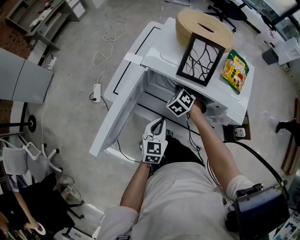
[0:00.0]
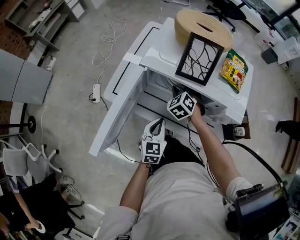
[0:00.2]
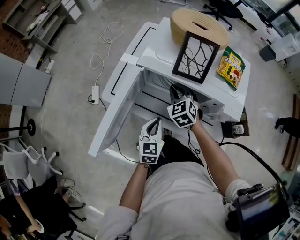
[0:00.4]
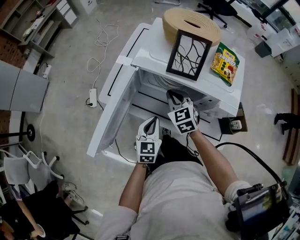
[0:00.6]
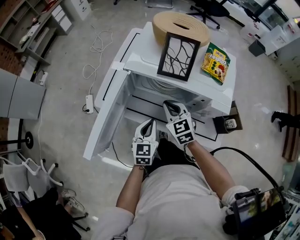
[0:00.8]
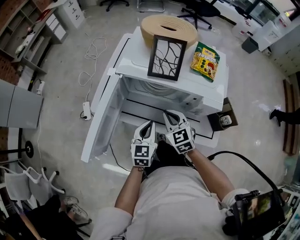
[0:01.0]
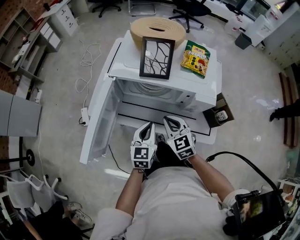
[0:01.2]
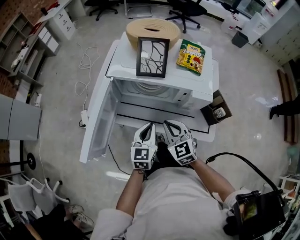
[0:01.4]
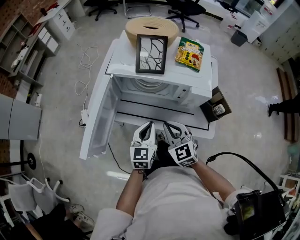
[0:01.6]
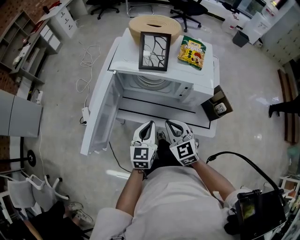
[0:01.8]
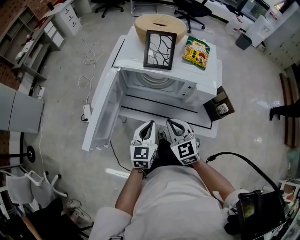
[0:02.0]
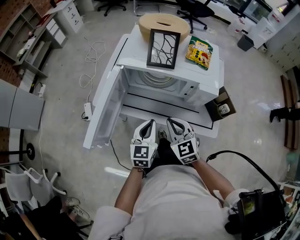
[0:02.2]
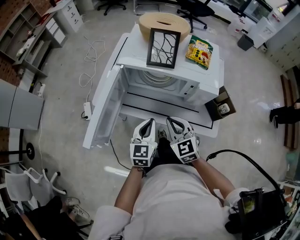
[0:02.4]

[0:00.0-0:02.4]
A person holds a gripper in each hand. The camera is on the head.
0:00.0 to 0:01.2: The left gripper changes place by some 5 cm.

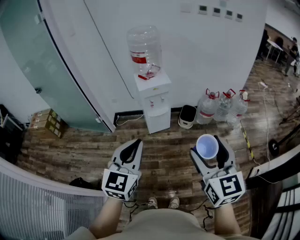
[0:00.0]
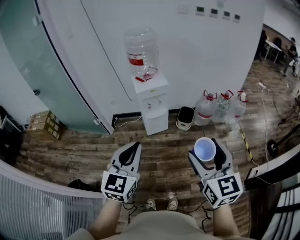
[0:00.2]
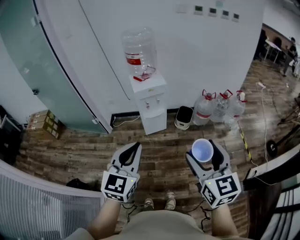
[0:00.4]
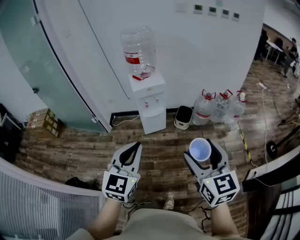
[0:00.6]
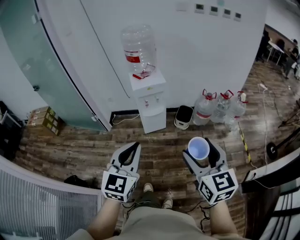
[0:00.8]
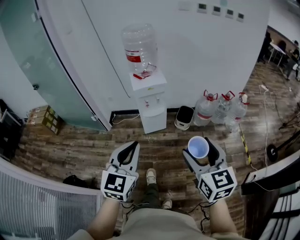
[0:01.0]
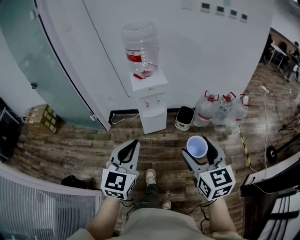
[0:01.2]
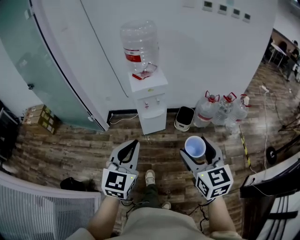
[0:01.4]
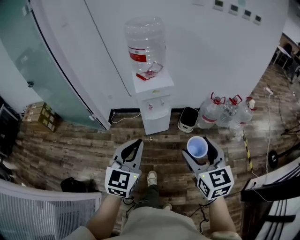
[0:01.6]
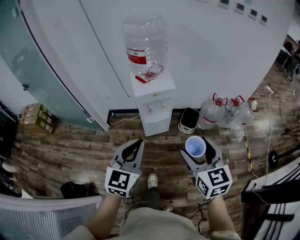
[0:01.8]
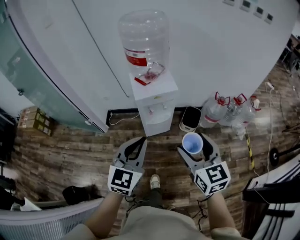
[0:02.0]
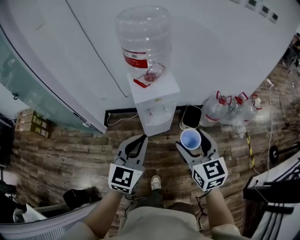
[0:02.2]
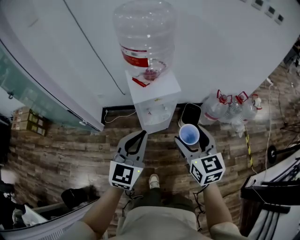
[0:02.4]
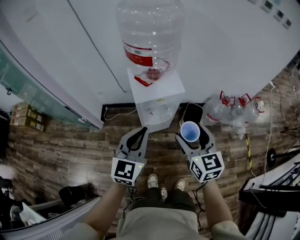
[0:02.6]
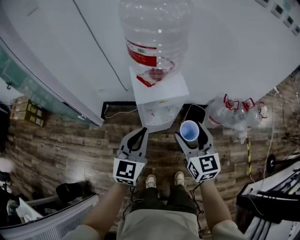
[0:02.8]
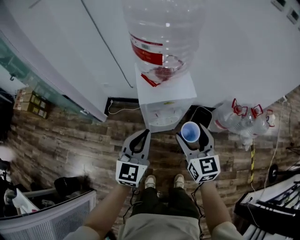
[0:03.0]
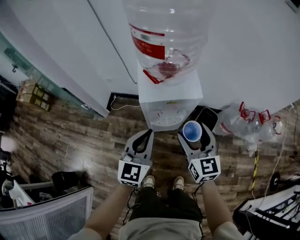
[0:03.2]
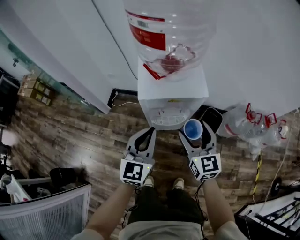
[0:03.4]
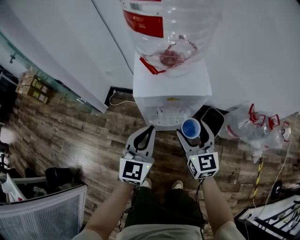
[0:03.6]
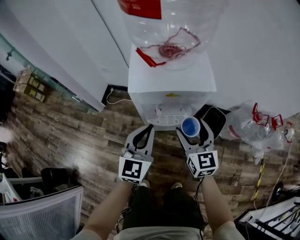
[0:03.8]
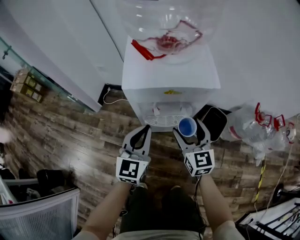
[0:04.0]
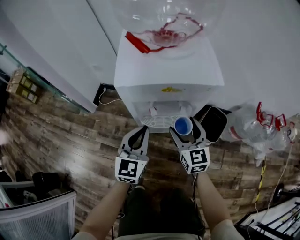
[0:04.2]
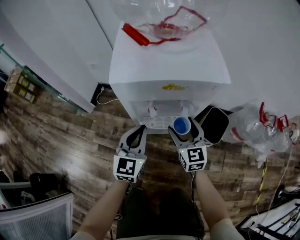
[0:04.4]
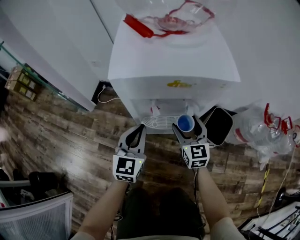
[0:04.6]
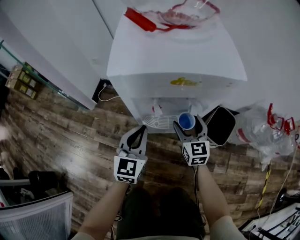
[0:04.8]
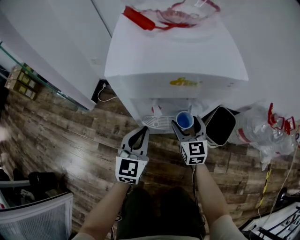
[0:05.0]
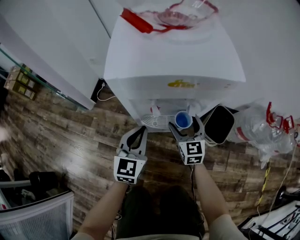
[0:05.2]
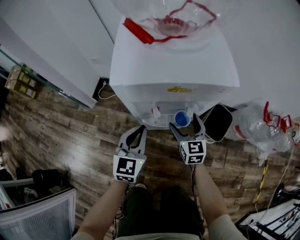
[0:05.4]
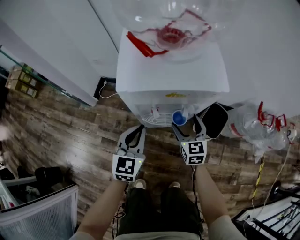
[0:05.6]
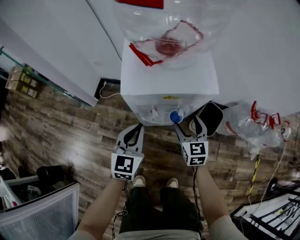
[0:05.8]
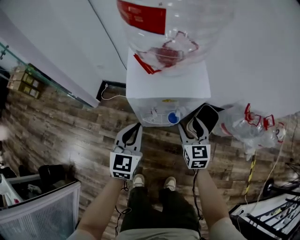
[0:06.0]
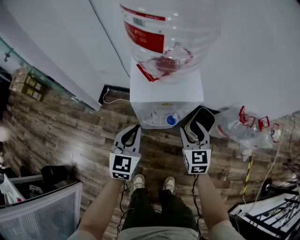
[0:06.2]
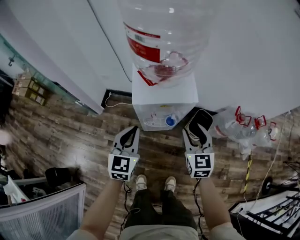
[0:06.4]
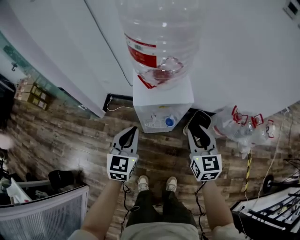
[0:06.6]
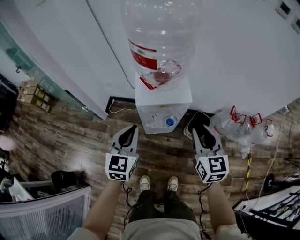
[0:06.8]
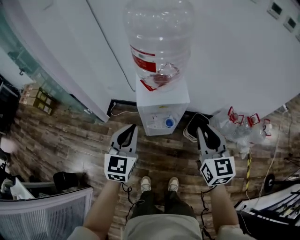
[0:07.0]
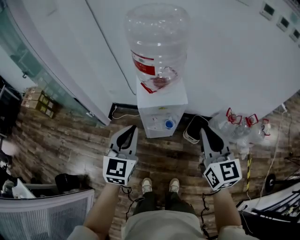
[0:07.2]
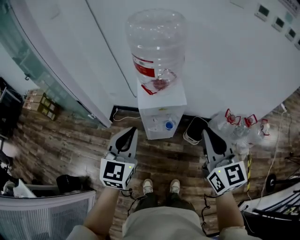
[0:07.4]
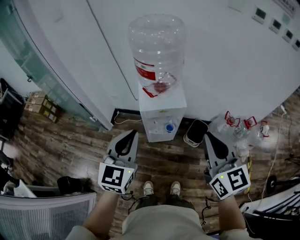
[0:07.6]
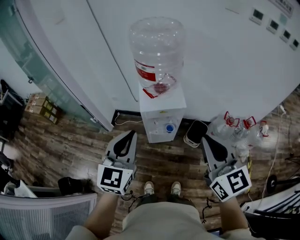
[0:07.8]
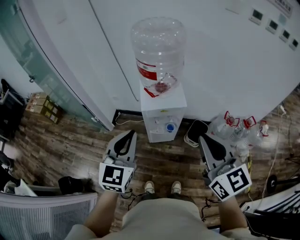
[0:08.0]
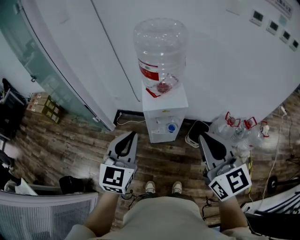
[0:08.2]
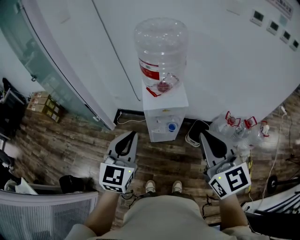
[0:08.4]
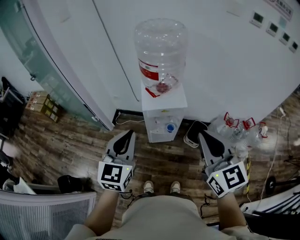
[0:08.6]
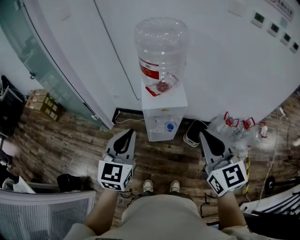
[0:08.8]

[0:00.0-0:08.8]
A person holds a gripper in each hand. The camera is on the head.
0:00.0 to 0:01.4: The two grippers go about 15 cm forward and downward.
0:01.4 to 0:03.0: Both grippers travel together forward and downward, approximately 40 cm.
0:03.0 to 0:04.4: The two grippers go approximately 35 cm downward.
0:04.4 to 0:05.8: The two grippers go roughly 5 cm upward.
0:05.8 to 0:07.4: The right gripper shifts about 60 cm upward and backward, and closes its fingers. Meanwhile the left gripper travels upward by some 40 cm.
0:07.4 to 0:08.8: The left gripper shifts by about 5 cm. The right gripper ends up roughly 5 cm from where it was.

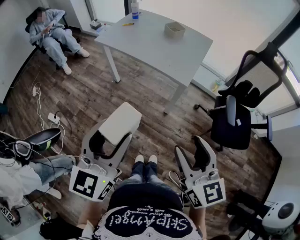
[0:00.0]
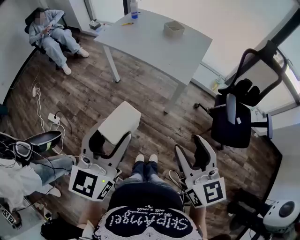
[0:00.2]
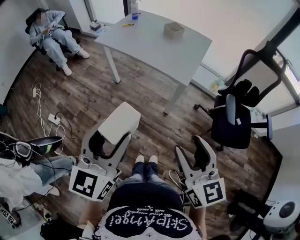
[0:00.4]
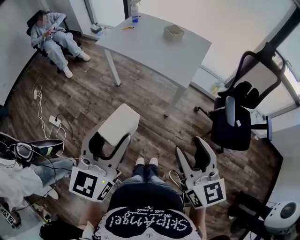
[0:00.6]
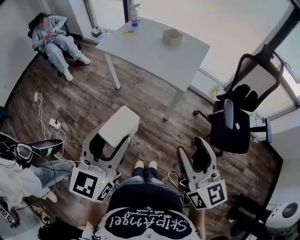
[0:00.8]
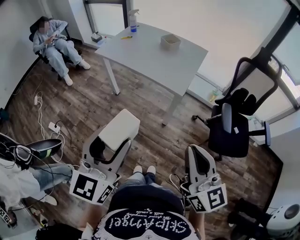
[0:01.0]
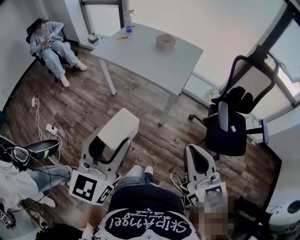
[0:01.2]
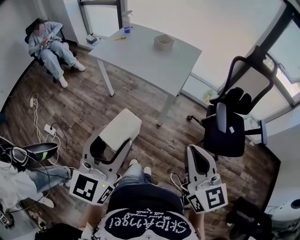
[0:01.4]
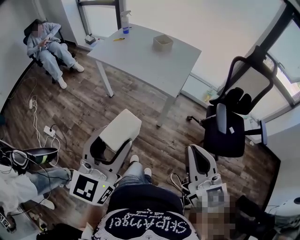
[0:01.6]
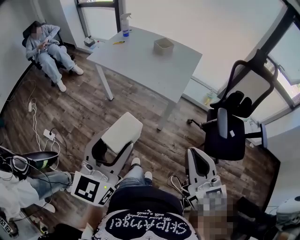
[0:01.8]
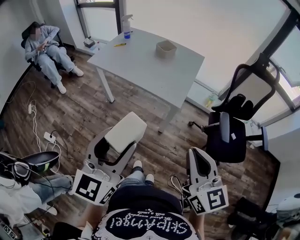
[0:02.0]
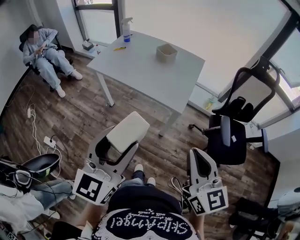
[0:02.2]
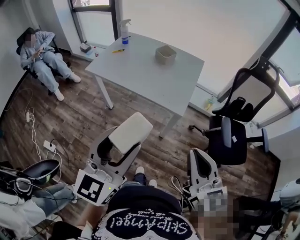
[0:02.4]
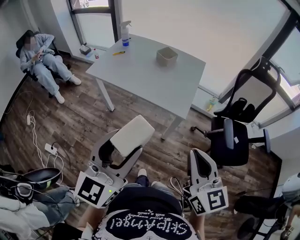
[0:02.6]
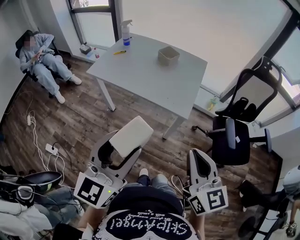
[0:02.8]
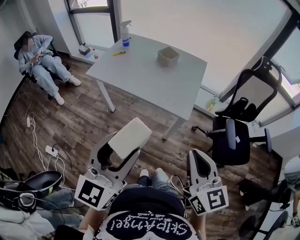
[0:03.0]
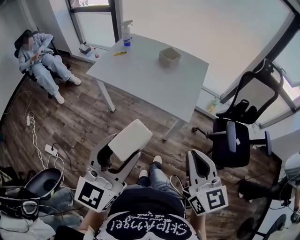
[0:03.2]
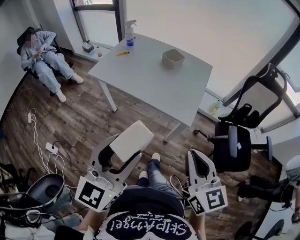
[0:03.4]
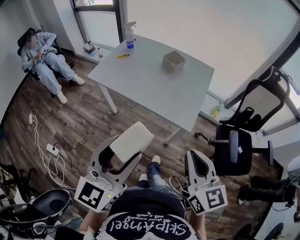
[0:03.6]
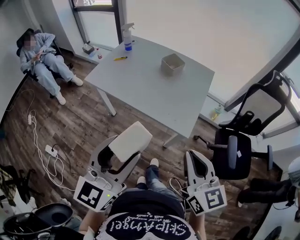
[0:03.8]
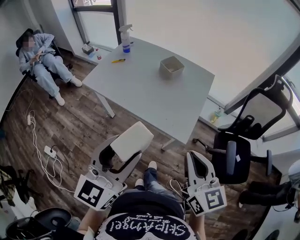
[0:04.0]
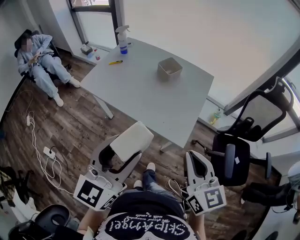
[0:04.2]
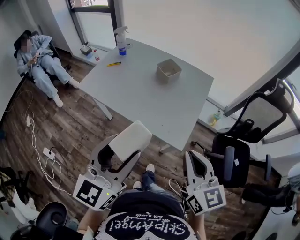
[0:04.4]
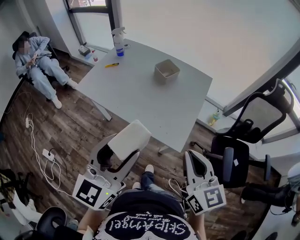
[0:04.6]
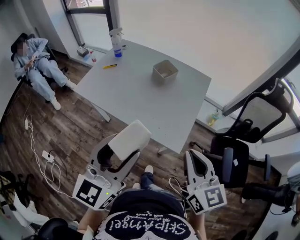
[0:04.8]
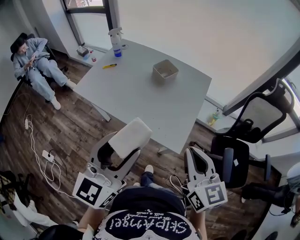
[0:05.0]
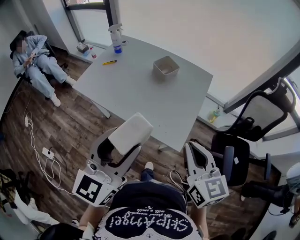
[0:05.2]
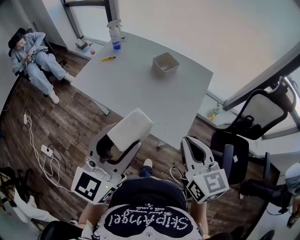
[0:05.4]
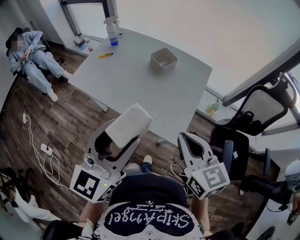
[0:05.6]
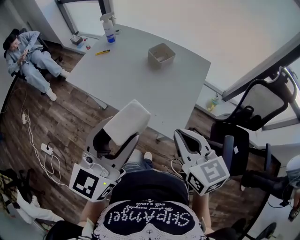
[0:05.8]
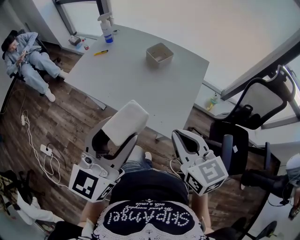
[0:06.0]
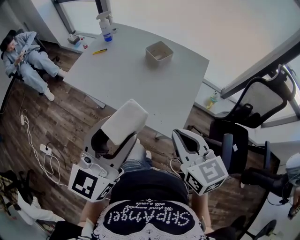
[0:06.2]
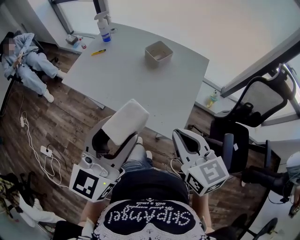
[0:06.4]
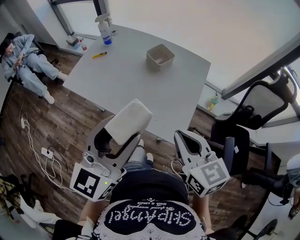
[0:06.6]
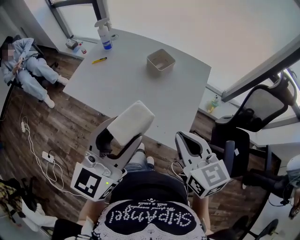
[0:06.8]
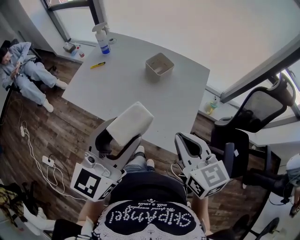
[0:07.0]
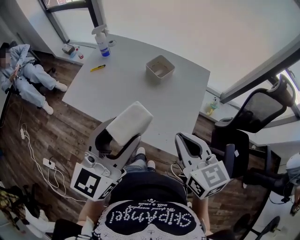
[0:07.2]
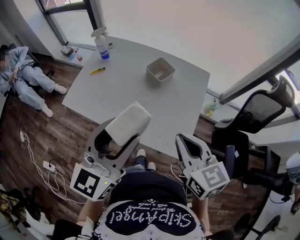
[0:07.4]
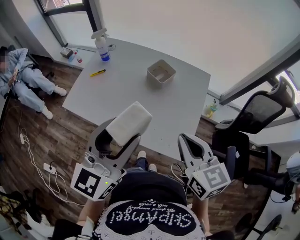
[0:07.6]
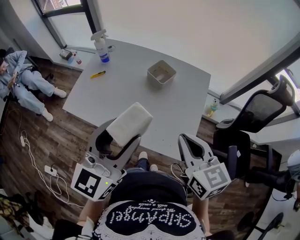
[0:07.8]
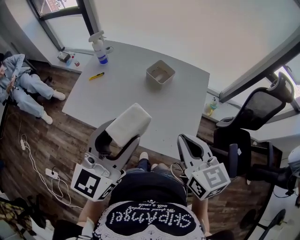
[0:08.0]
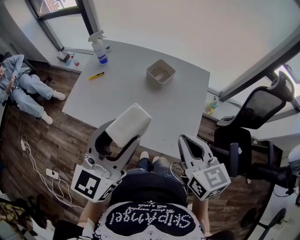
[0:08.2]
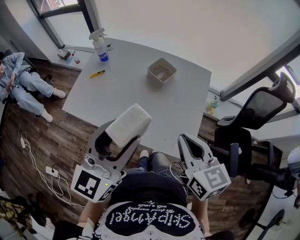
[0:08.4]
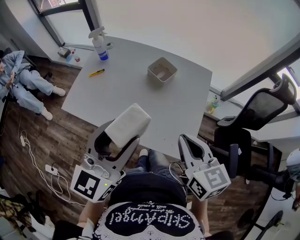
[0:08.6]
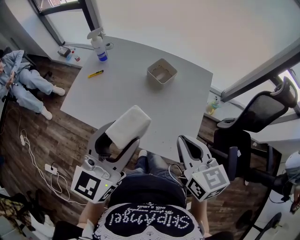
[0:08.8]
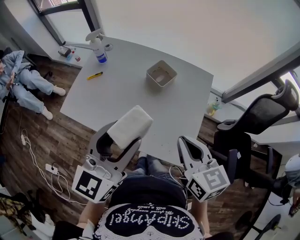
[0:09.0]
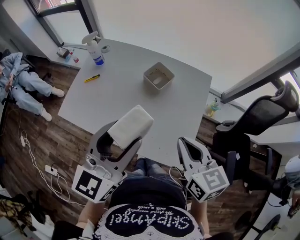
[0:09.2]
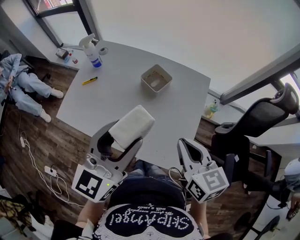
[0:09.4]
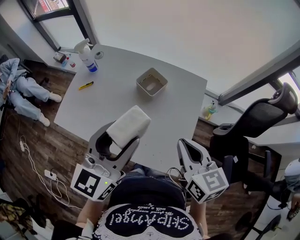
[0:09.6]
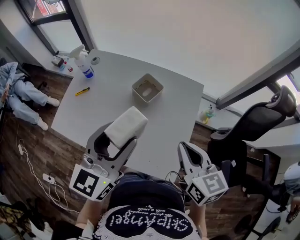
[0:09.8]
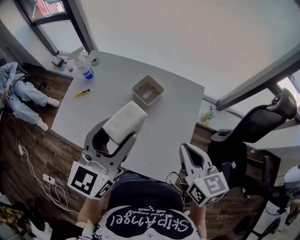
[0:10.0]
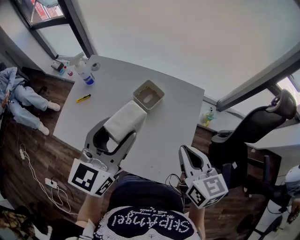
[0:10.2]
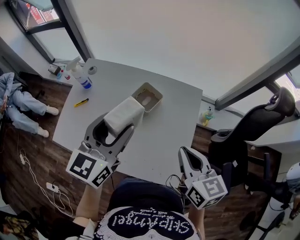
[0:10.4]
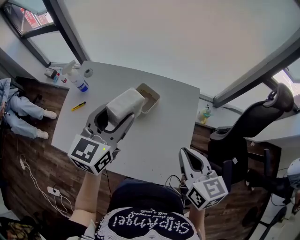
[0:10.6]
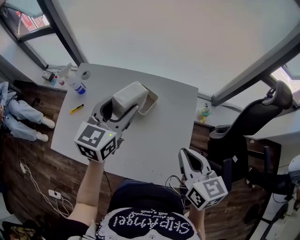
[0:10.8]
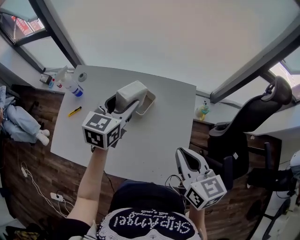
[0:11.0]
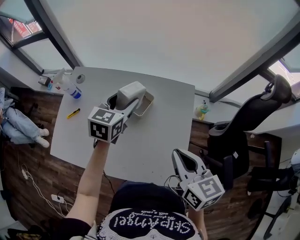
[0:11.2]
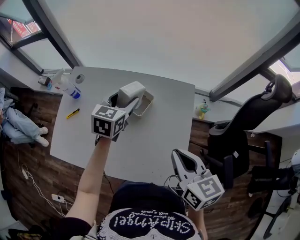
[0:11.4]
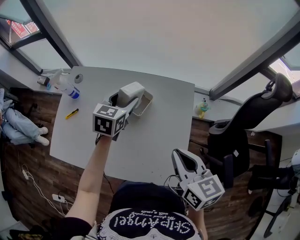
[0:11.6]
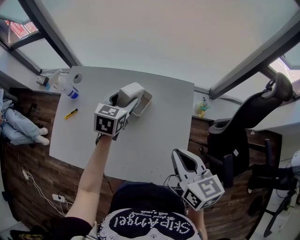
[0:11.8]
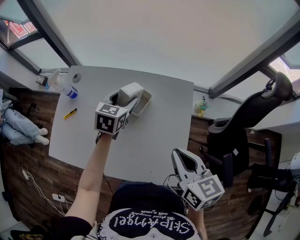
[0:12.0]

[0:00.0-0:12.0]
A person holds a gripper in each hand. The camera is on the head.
0:00.0 to 0:01.6: The right gripper goes approximately 5 cm to the right, and closes up.
0:01.6 to 0:03.0: Both grippers travel together forward and to the left, some 15 cm.
0:03.0 to 0:04.4: The grippers both shift forward by approximately 15 cm.
0:04.4 to 0:06.0: The right gripper goes about 5 cm forward. Meanwhile the left gripper moves roughly 5 cm.
0:06.0 to 0:07.6: Both grippers move forward, some 10 cm.
0:07.6 to 0:09.0: There are only small adjustments of the grippers.
0:09.0 to 0:10.4: The right gripper moves forward and to the right, some 10 cm. The left gripper travels forward by some 15 cm.
0:10.4 to 0:12.0: The left gripper is displaced downward and forward by approximately 25 cm, and turns by about 30 degrees.

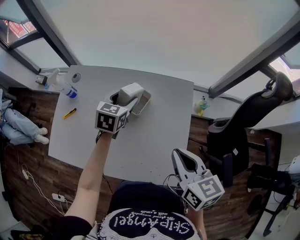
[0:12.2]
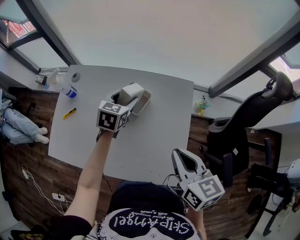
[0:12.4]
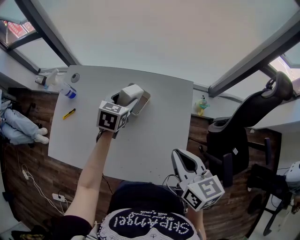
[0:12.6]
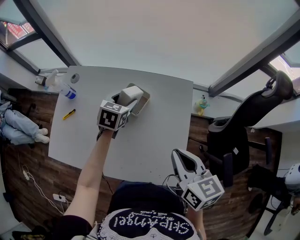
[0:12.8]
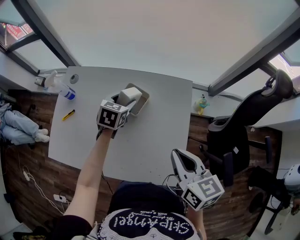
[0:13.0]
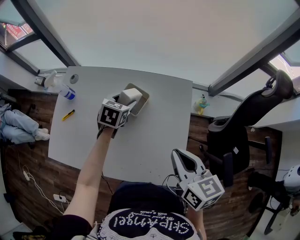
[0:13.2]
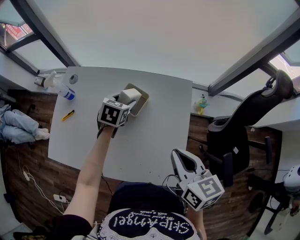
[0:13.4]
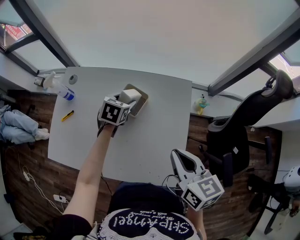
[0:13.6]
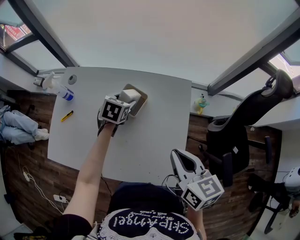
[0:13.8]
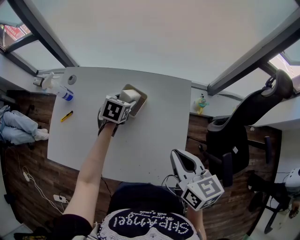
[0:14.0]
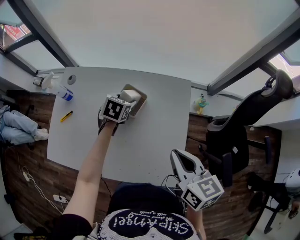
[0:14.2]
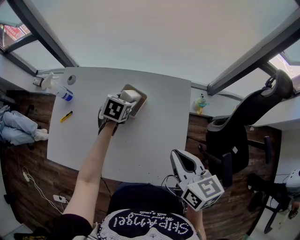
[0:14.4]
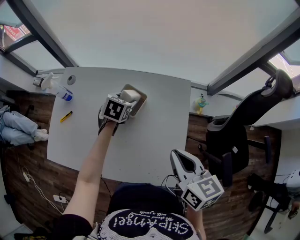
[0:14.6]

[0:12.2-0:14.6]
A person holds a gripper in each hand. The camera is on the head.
0:12.2 to 0:13.4: The left gripper goes about 5 cm downward.
0:13.4 to 0:14.6: The grippers stay close to where they were, moving slightly.
